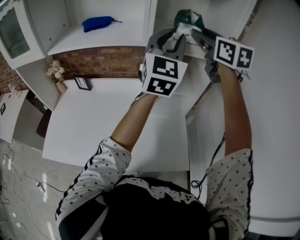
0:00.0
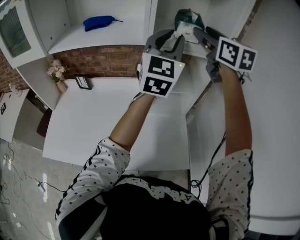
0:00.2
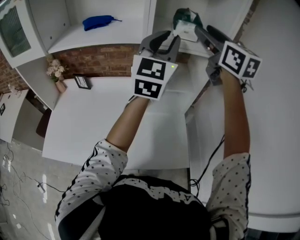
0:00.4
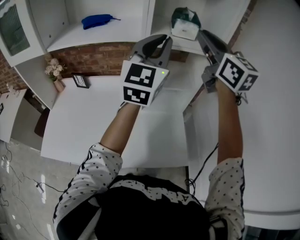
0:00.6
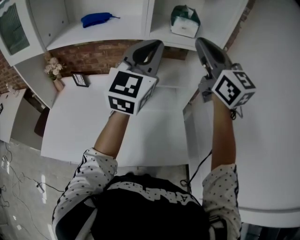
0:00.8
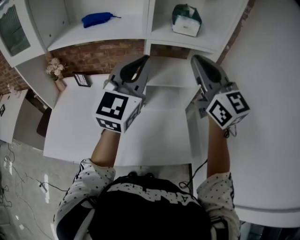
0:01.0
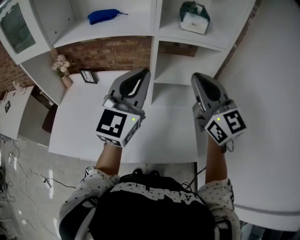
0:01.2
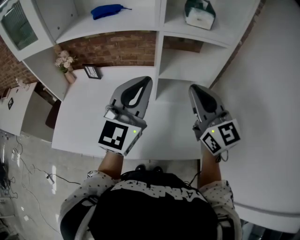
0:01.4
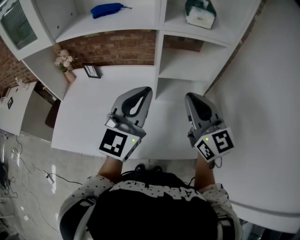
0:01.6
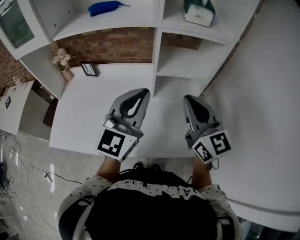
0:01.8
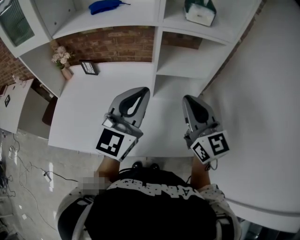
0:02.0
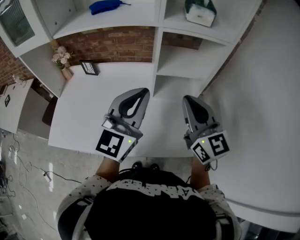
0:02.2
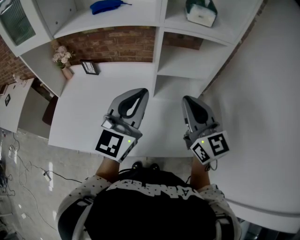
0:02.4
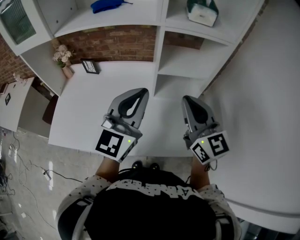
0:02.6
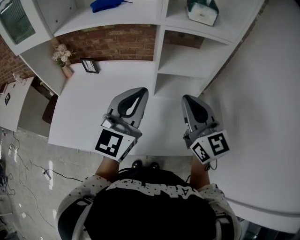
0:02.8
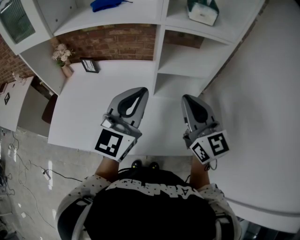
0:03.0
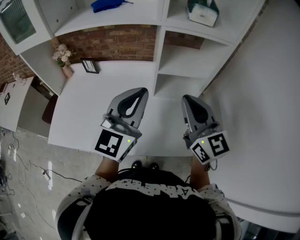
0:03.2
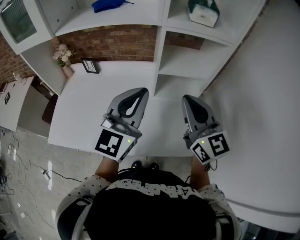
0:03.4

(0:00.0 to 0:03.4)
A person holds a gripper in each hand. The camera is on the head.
0:00.0 - 0:01.6: The right gripper heads backward and downward, covering about 30 cm, and closes; the left gripper is displaced backward, downward and to the left by about 25 cm.
0:01.6 - 0:03.4: The grippers stay close to where they were, moving slightly.

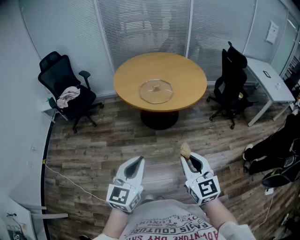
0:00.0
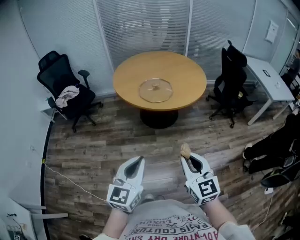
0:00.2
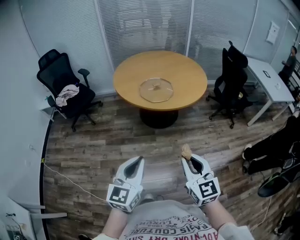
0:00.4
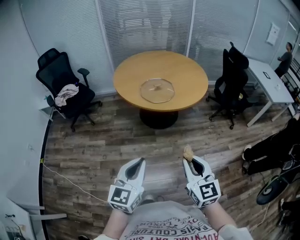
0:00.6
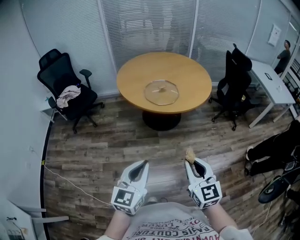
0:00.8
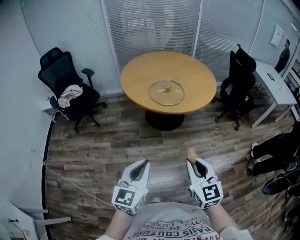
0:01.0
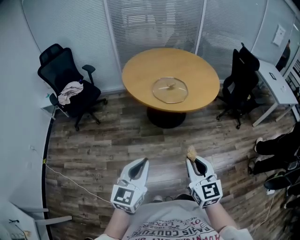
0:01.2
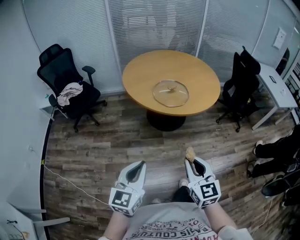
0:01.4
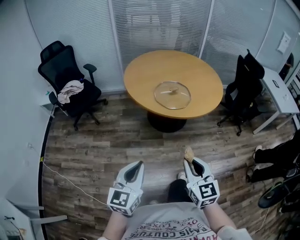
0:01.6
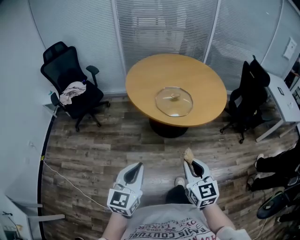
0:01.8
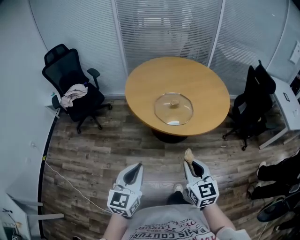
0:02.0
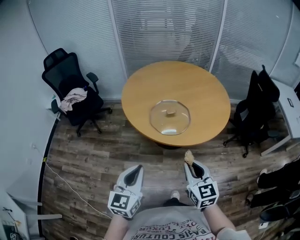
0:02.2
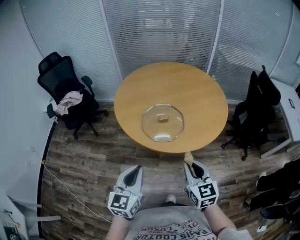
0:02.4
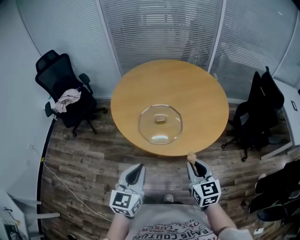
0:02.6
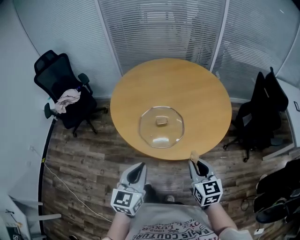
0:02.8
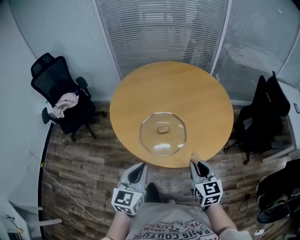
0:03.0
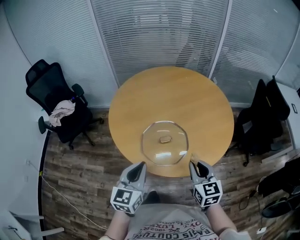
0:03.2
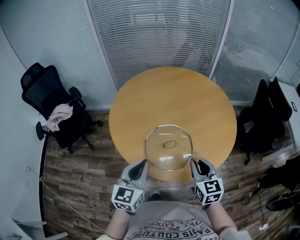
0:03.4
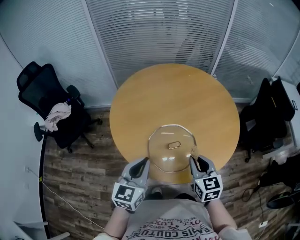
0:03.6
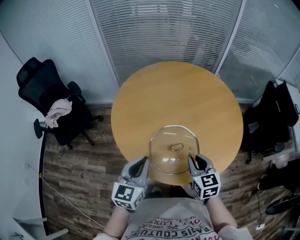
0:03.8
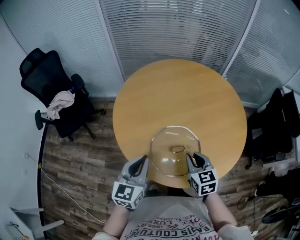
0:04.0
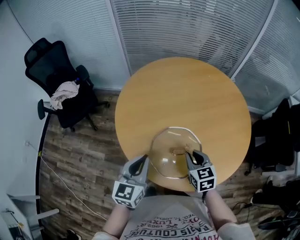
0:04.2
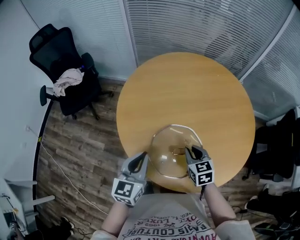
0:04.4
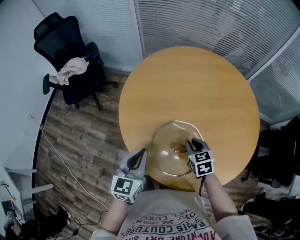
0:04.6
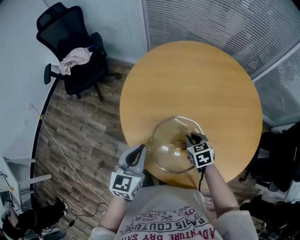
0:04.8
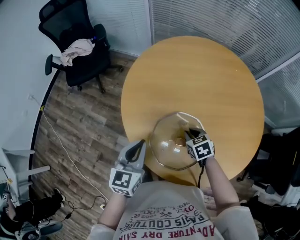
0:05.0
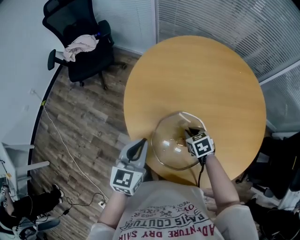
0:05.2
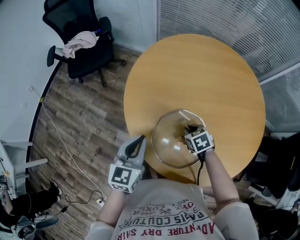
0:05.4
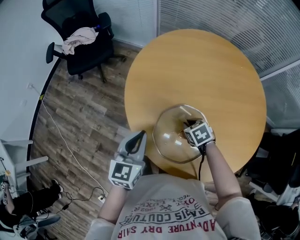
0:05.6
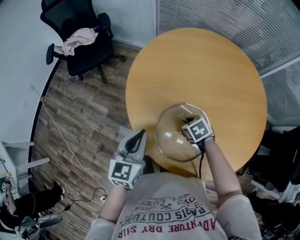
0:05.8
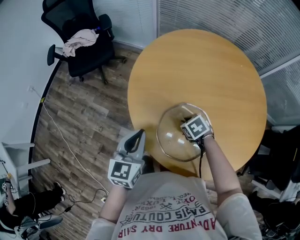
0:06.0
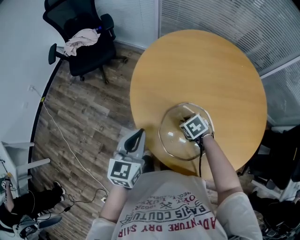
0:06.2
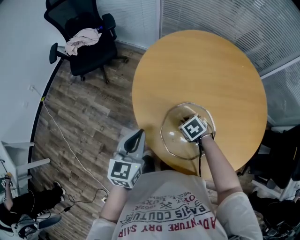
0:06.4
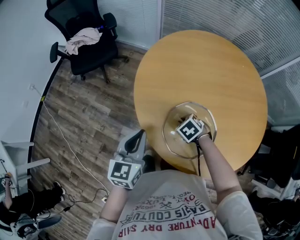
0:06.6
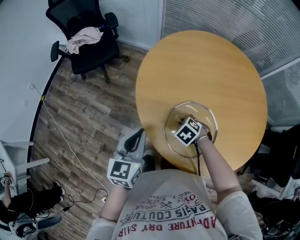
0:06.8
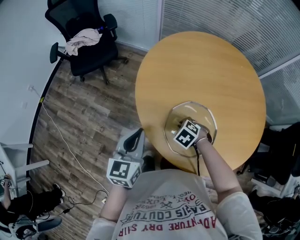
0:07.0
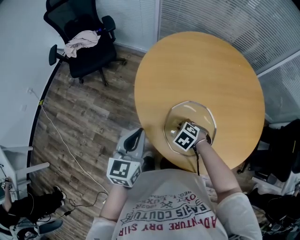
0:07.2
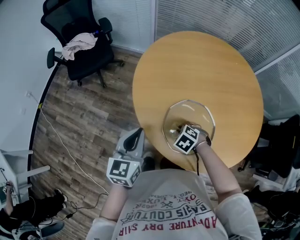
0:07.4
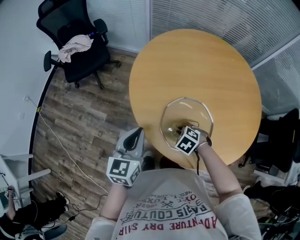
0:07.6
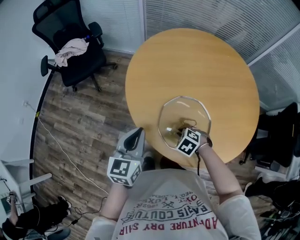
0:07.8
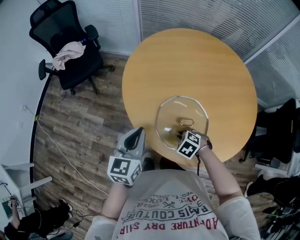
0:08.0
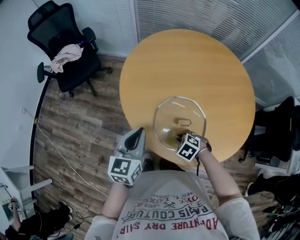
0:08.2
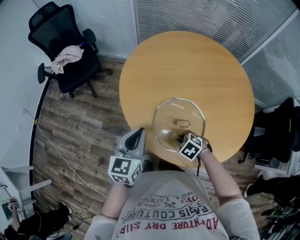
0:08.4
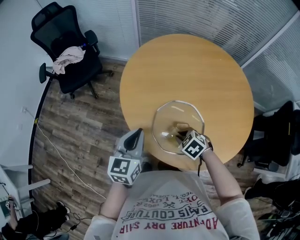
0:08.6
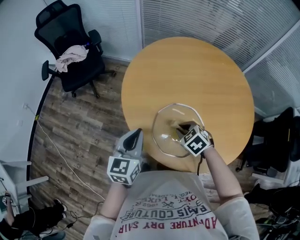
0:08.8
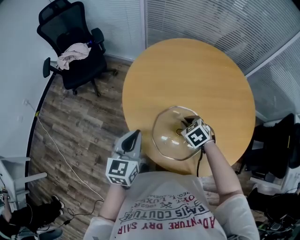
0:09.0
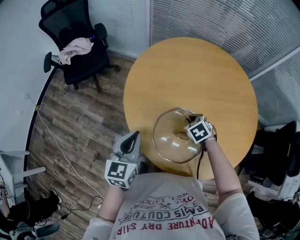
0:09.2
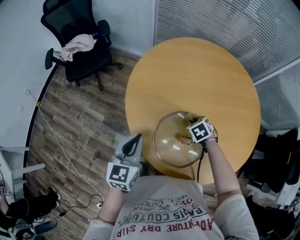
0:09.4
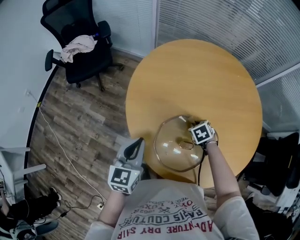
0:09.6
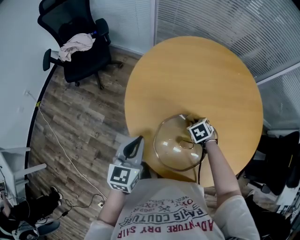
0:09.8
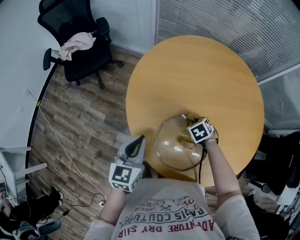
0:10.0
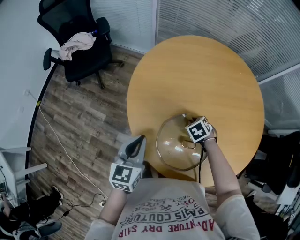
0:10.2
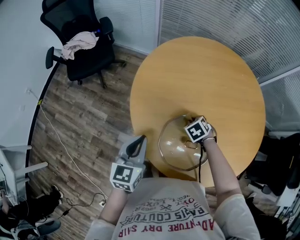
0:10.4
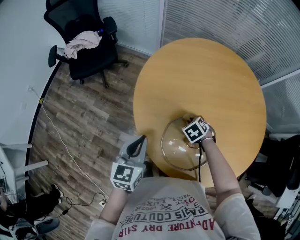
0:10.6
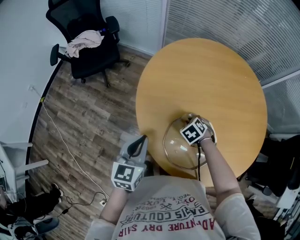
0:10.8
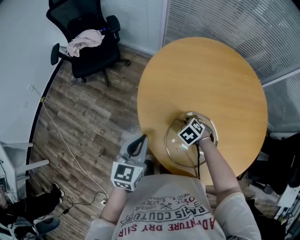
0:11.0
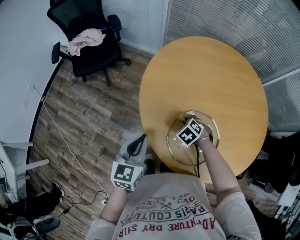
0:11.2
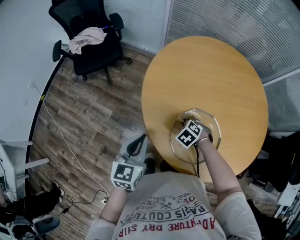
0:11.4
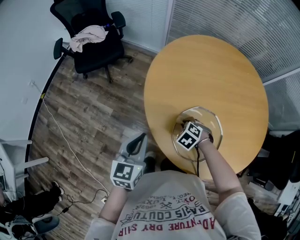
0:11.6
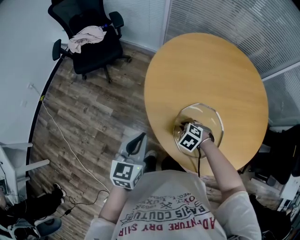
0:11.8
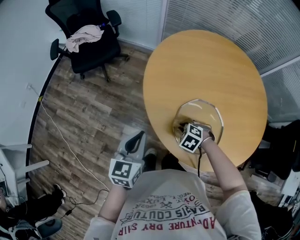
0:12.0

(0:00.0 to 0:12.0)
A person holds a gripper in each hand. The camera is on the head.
0:00.0 - 0:01.6: The two grippers go roughly 15 cm to the left, forward and downward.
0:01.6 - 0:03.0: The two grippers travel together, forward and to the right, approximately 40 cm.
0:03.0 - 0:04.4: The right gripper moves forward and downward, approximately 30 cm, and swivels some 20 degrees. Meanwhile the left gripper moves forward, approximately 20 cm.
0:04.4 - 0:06.0: The left gripper ends up some 5 cm from where it was; the right gripper shifts roughly 10 cm downward, and tips its fingers downward by some 30 degrees.
0:06.0 - 0:07.6: The left gripper ends up about 5 cm from where it was. Meanwhile the right gripper changes place by some 10 cm, and changes its angle by approximately 20 degrees.
0:07.6 - 0:09.0: The right gripper changes place by some 15 cm, and swivels about 20 degrees.
0:09.0 - 0:10.4: The right gripper shifts approximately 10 cm downward. Meanwhile the left gripper changes place by about 5 cm.
0:10.4 - 0:12.0: The left gripper shifts by some 10 cm. Meanwhile the right gripper moves some 20 cm, and changes its angle by about 30 degrees.

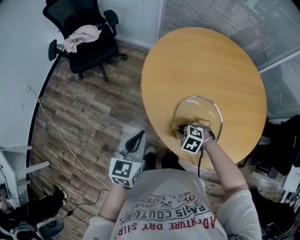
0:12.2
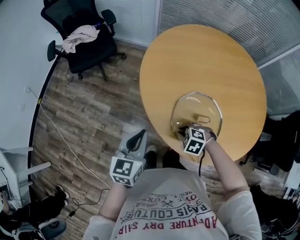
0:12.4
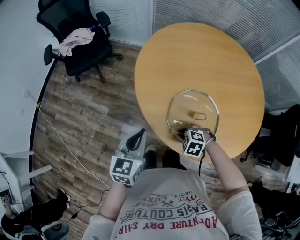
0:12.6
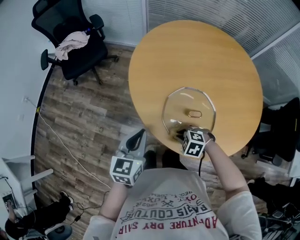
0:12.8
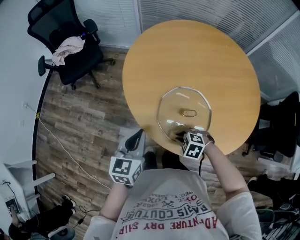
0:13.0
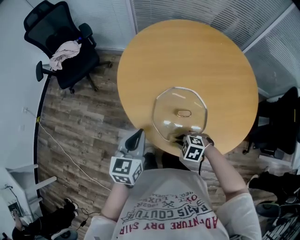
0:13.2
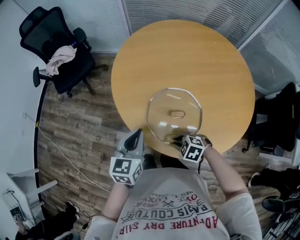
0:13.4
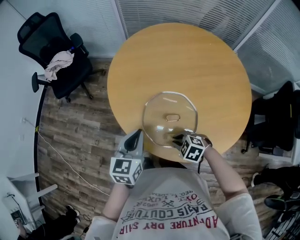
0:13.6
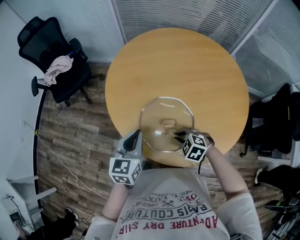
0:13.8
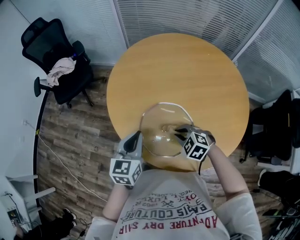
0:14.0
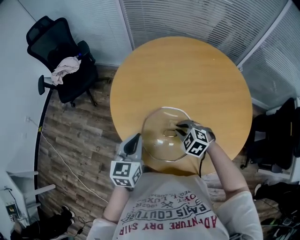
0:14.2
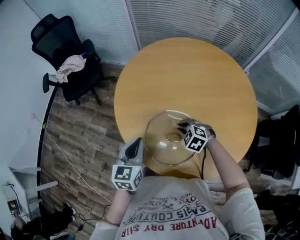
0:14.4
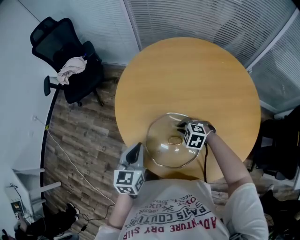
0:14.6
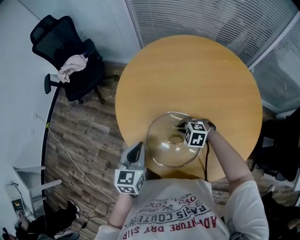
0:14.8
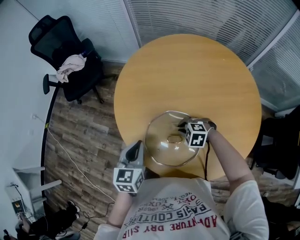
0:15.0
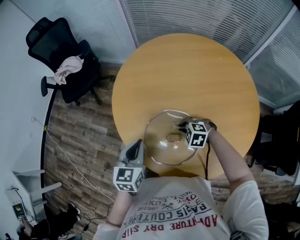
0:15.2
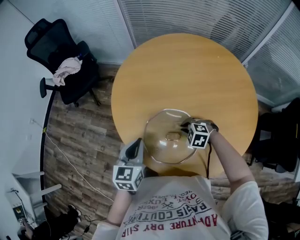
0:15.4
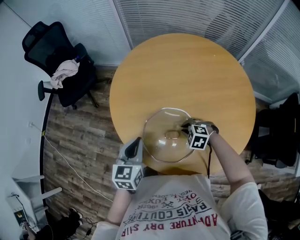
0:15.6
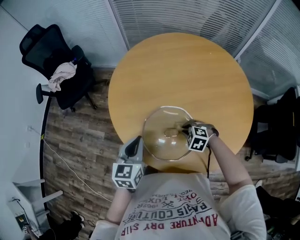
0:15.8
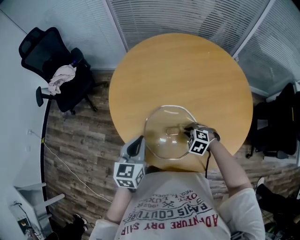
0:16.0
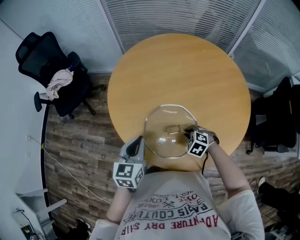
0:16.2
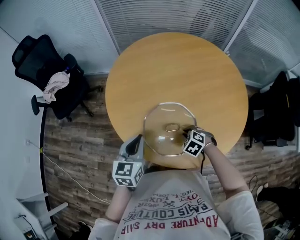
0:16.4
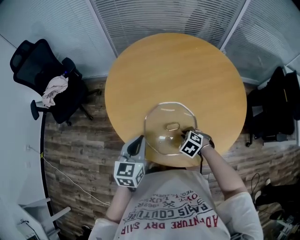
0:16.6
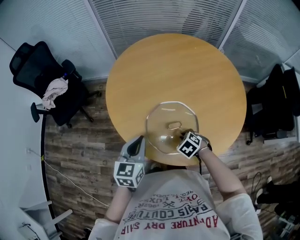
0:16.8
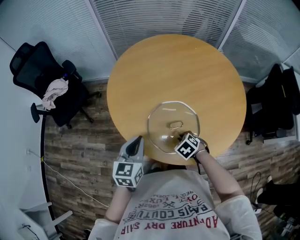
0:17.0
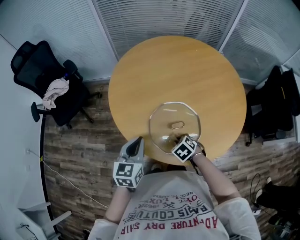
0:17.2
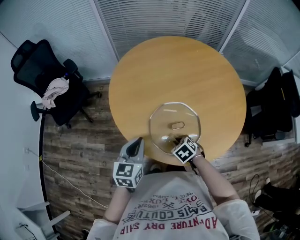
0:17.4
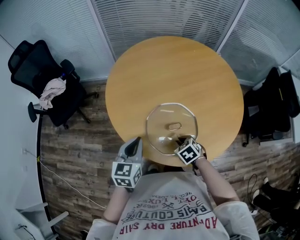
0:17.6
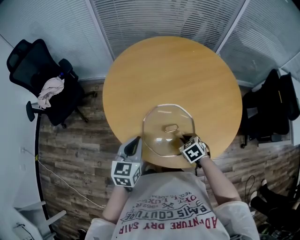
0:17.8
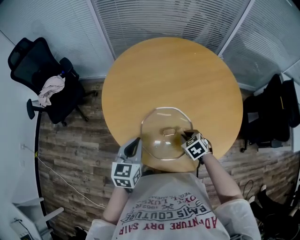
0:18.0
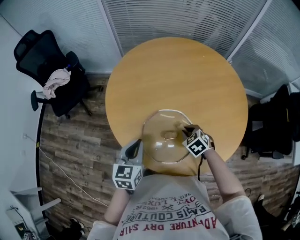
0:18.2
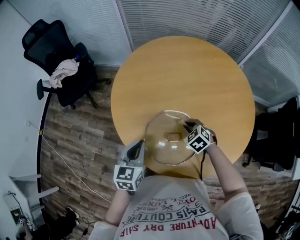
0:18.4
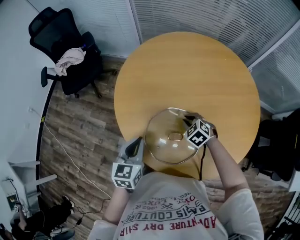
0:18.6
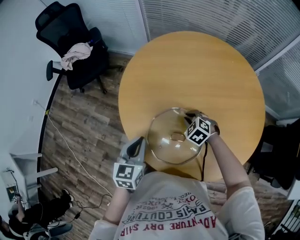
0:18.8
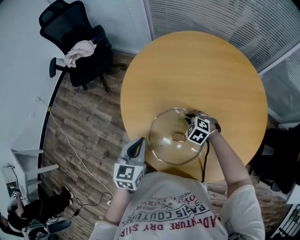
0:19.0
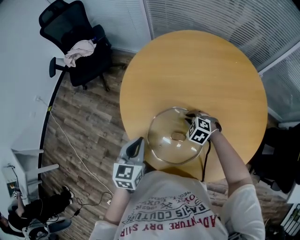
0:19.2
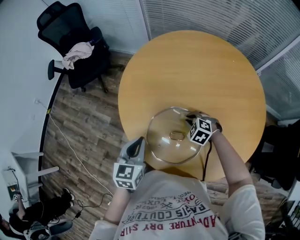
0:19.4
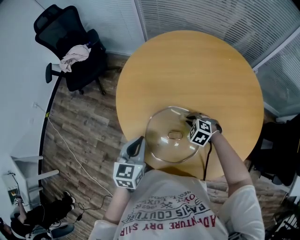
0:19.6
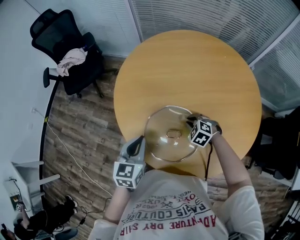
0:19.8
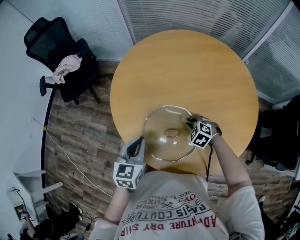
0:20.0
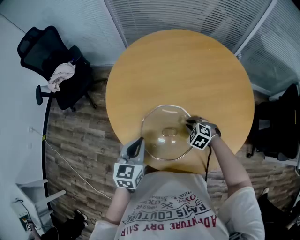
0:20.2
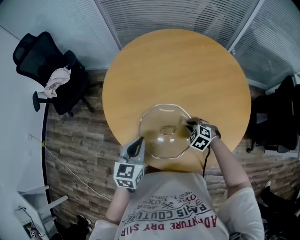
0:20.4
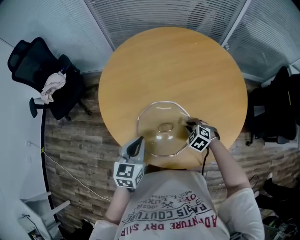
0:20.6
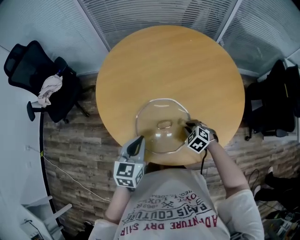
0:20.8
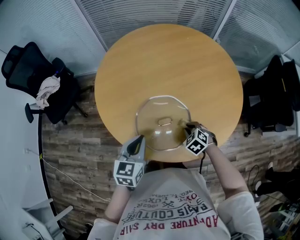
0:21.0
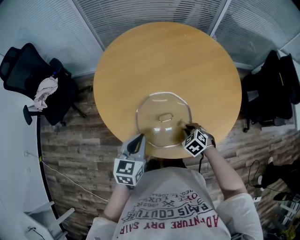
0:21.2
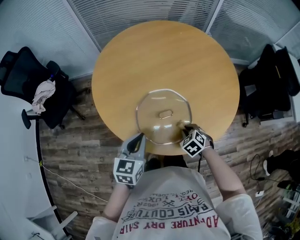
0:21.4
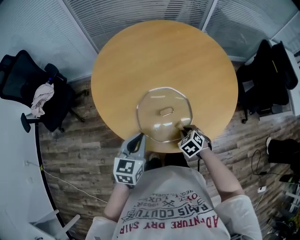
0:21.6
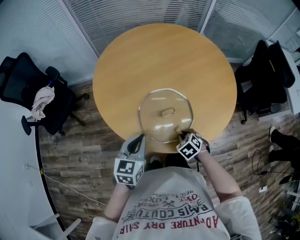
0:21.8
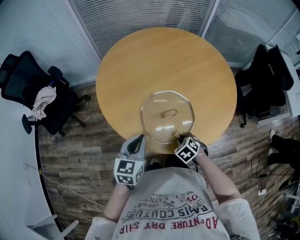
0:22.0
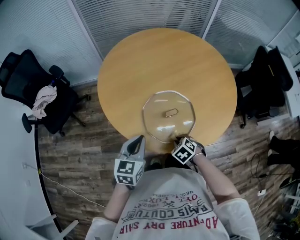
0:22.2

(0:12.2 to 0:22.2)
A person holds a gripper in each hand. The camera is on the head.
0:12.2 - 0:13.6: The left gripper changes place by approximately 15 cm. Meanwhile the right gripper shifts by roughly 15 cm.
0:13.6 - 0:15.0: The left gripper shifts by roughly 5 cm. Meanwhile the right gripper moves forward and to the right, some 15 cm.
0:15.0 - 0:16.4: The right gripper moves some 10 cm, and turns by some 40 degrees.
0:16.4 - 0:18.0: The right gripper moves roughly 10 cm to the left and comes back, and changes its angle by some 30 degrees.
0:18.0 - 0:19.4: The right gripper goes approximately 10 cm forward, and rolls counterclockwise, seen from behind, by roughly 50 degrees.
0:19.4 - 0:20.8: The right gripper shifts by some 15 cm, and turns by roughly 30 degrees. The left gripper swivels some 20 degrees.
0:20.8 - 0:22.2: The left gripper shifts some 10 cm to the left and backward, while the right gripper heads backward and to the left, covering about 20 cm.
